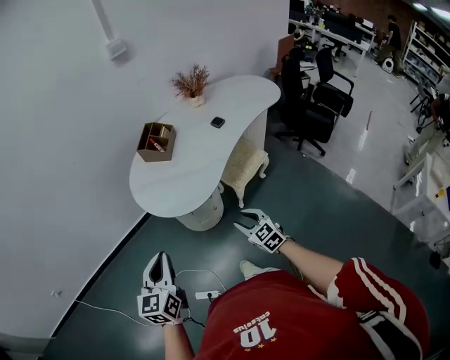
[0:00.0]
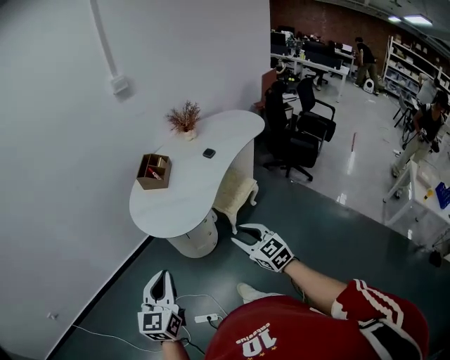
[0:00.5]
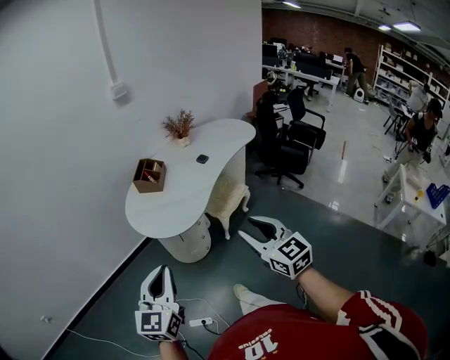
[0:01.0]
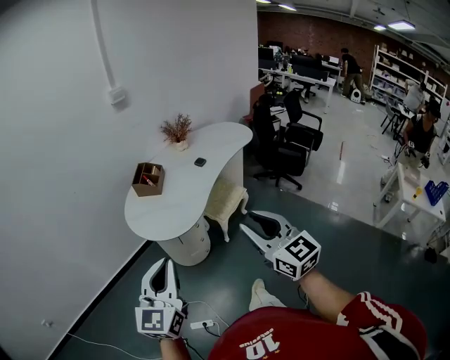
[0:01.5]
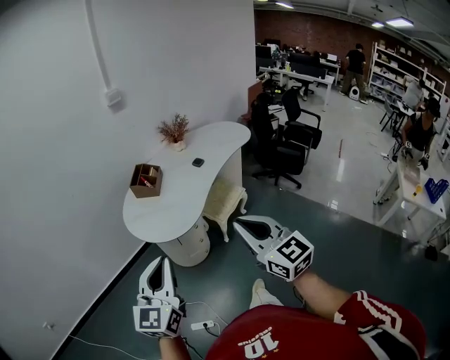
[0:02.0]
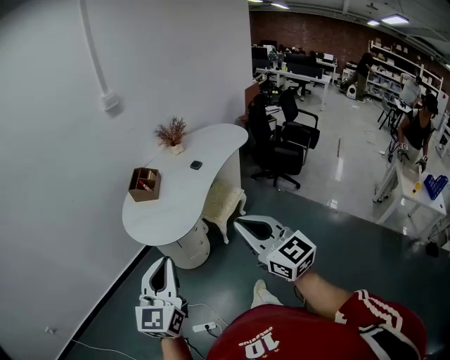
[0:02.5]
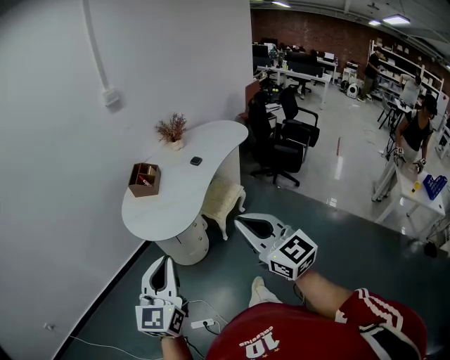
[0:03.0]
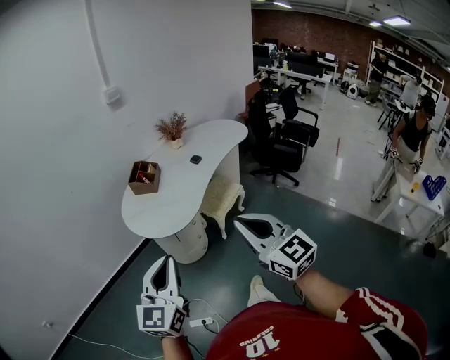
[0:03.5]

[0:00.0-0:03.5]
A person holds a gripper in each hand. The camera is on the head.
0:00.0 to 0:02.0: The left gripper moves upward and backward, roughly 15 cm, and rotates some 20 degrees. The right gripper travels upward and backward by some 35 cm, and turns by some 30 degrees.
0:02.0 to 0:03.5: There are only small adjustments of the grippers.

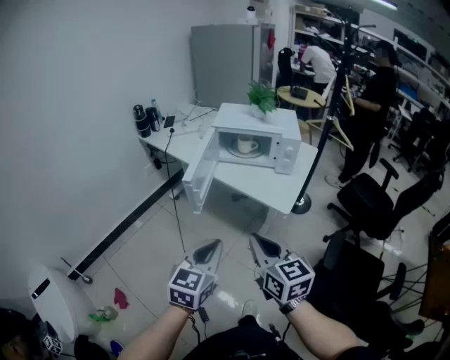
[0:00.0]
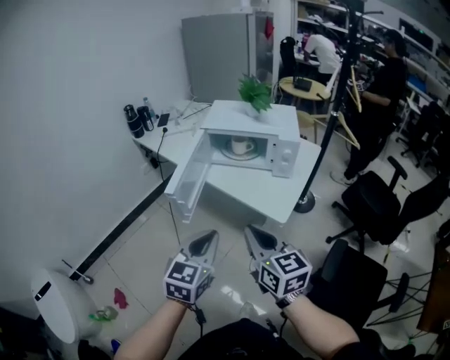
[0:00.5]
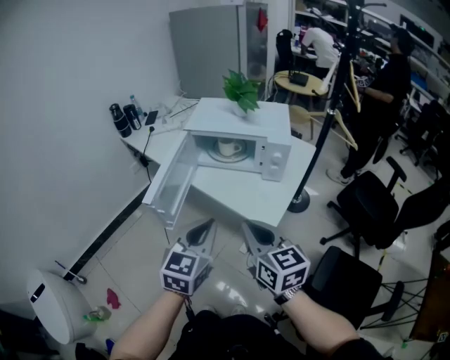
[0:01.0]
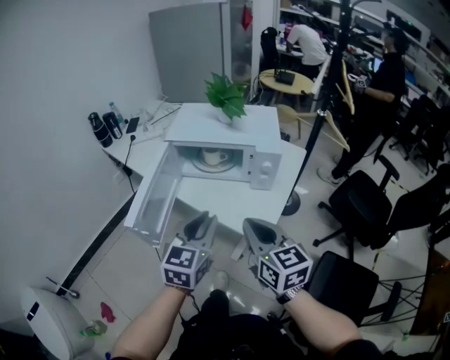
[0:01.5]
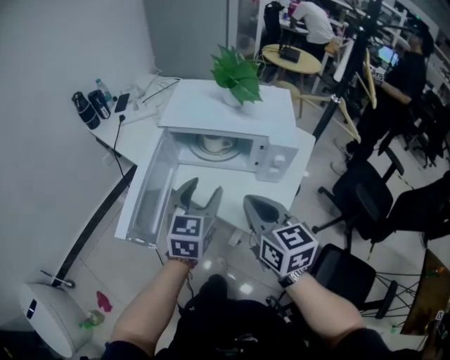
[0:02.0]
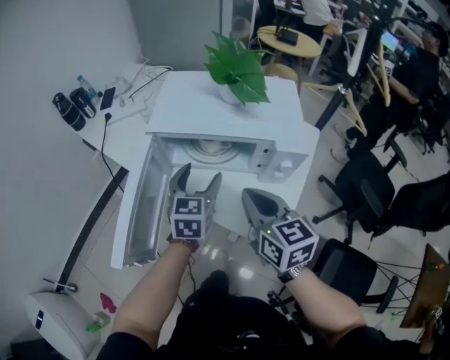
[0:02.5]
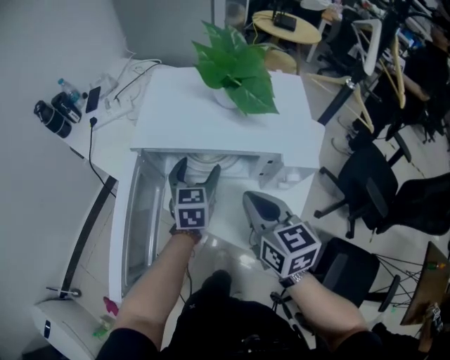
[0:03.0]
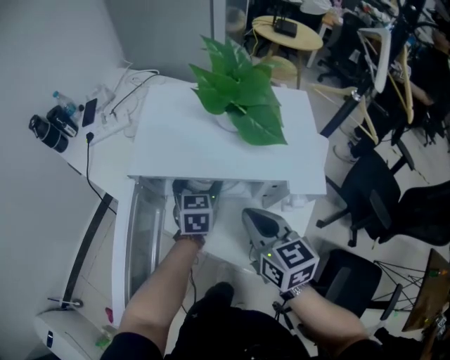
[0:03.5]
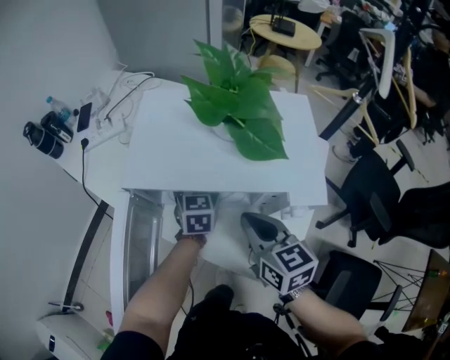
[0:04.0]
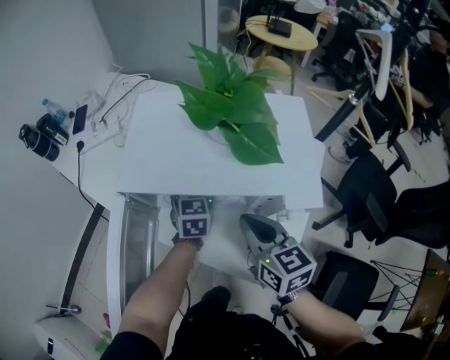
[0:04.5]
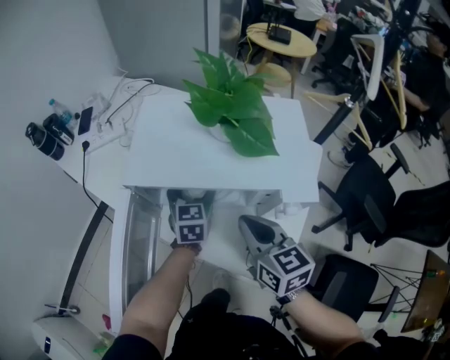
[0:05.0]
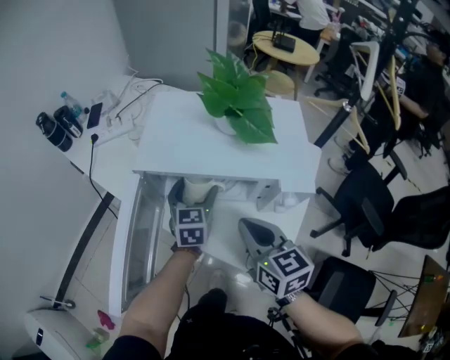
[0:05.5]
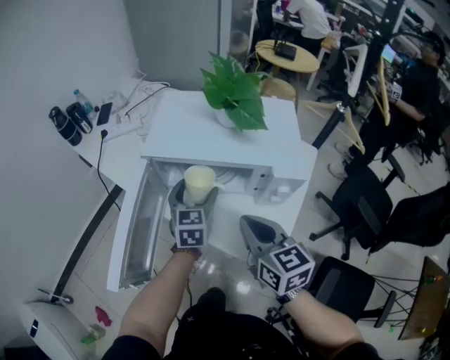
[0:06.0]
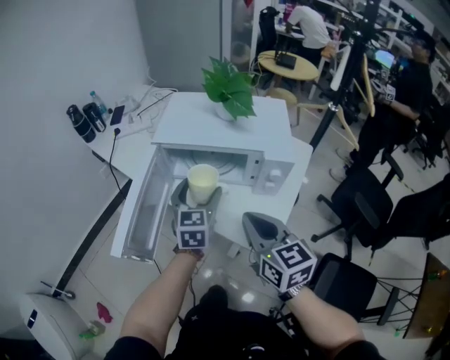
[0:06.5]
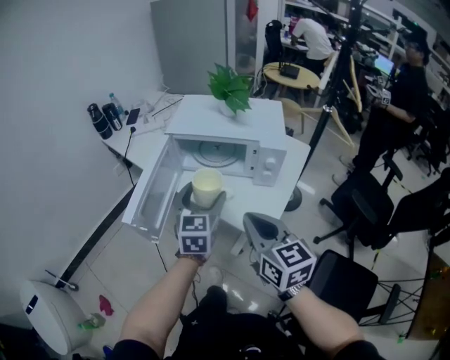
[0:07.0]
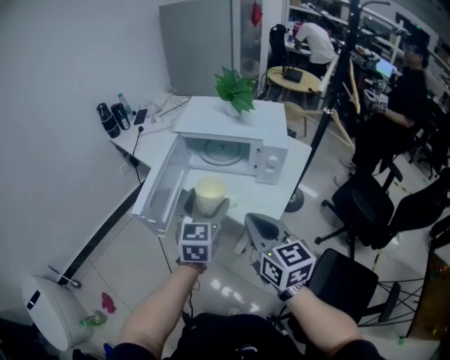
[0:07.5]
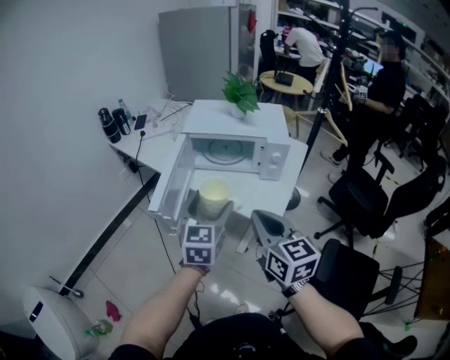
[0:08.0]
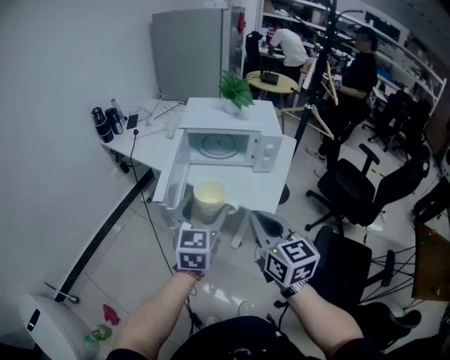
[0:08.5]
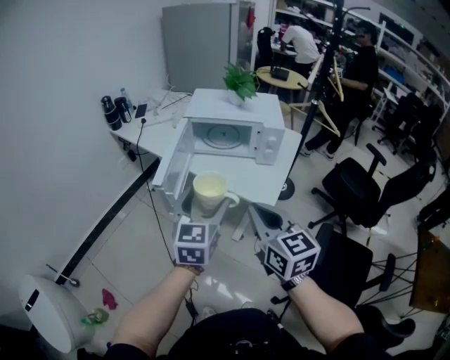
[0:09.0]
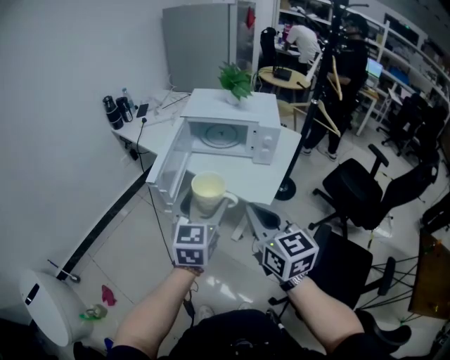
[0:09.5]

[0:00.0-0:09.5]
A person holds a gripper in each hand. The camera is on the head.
0:00.0 to 0:02.0: The two grippers go roughly 35 cm forward. The left gripper opens.
0:02.0 to 0:04.0: The left gripper is displaced forward and downward by roughly 30 cm, and opens up. The right gripper moves forward and downward, roughly 20 cm.
0:04.0 to 0:05.5: The left gripper travels backward by approximately 5 cm. Meanwhile the right gripper ends up roughly 5 cm from where it was.
0:05.5 to 0:07.5: The two grippers go roughly 30 cm backward and upward.
0:07.5 to 0:09.5: Both grippers move backward, roughly 15 cm.

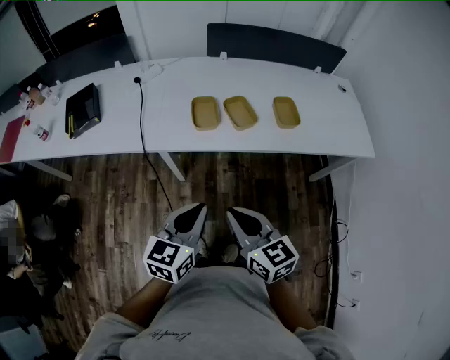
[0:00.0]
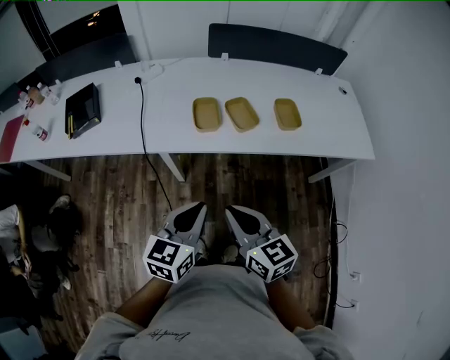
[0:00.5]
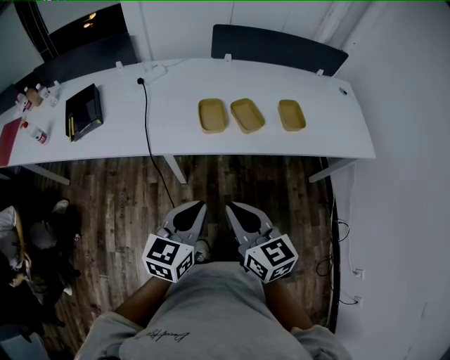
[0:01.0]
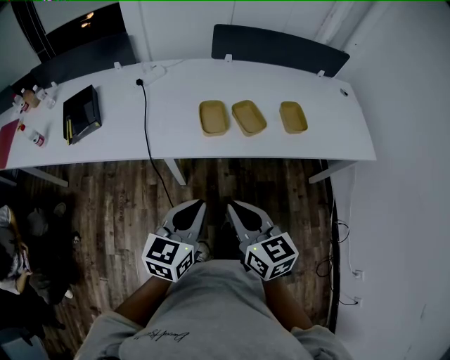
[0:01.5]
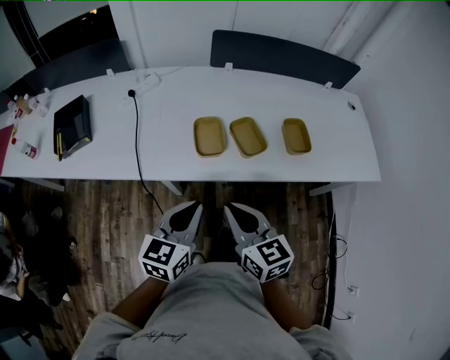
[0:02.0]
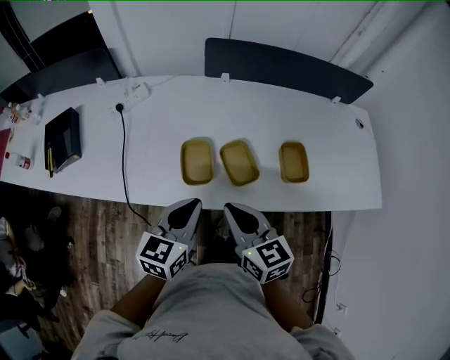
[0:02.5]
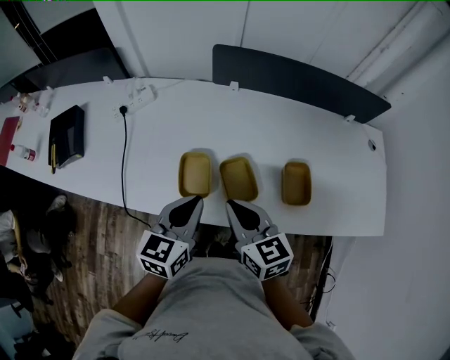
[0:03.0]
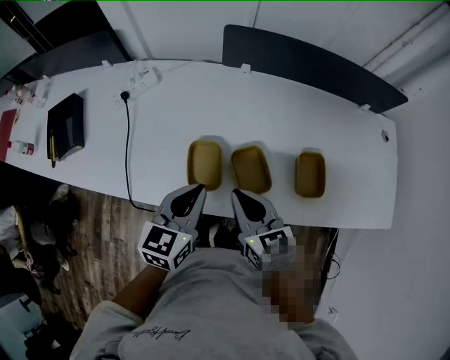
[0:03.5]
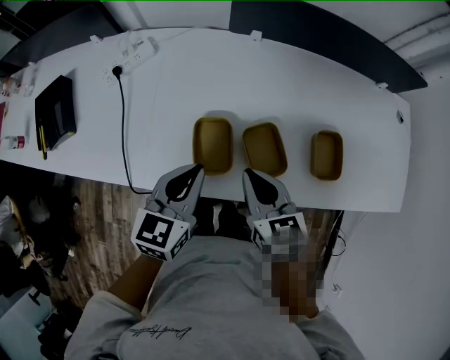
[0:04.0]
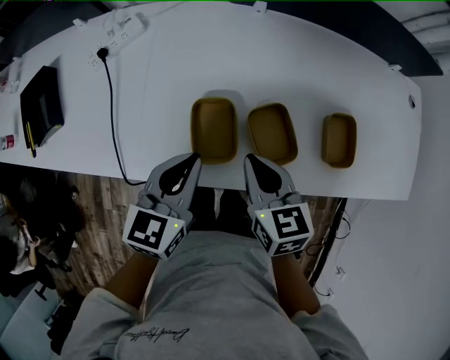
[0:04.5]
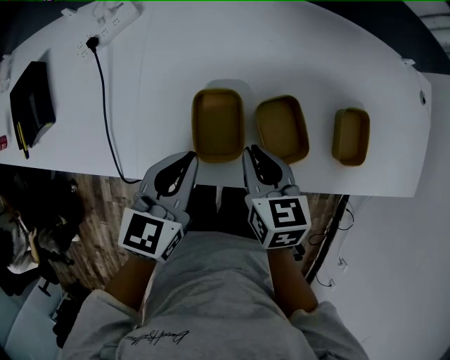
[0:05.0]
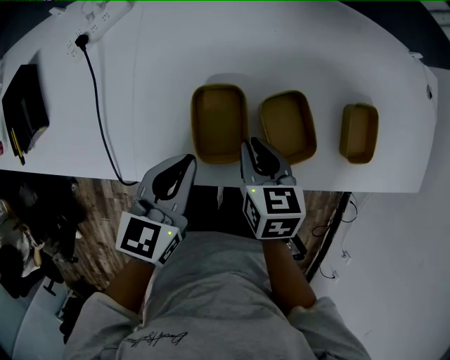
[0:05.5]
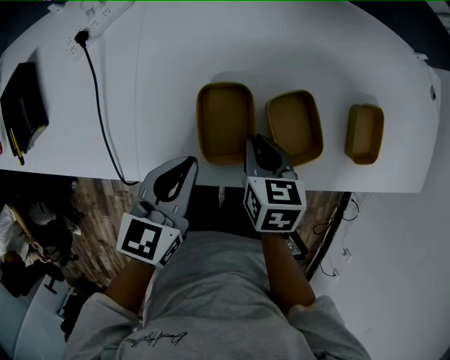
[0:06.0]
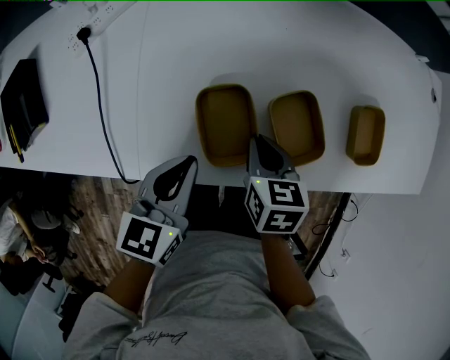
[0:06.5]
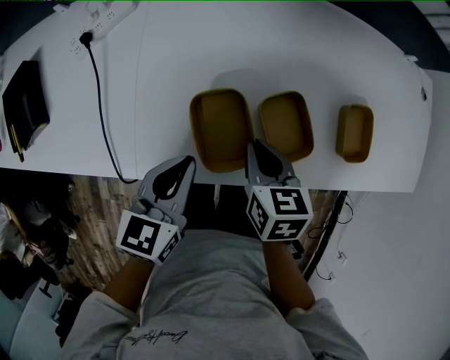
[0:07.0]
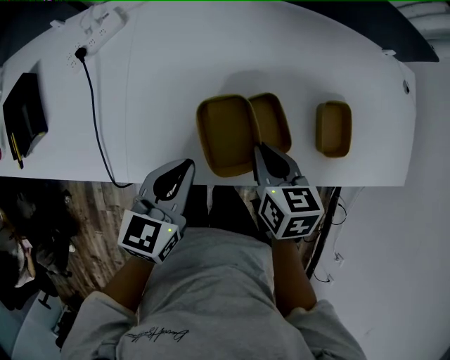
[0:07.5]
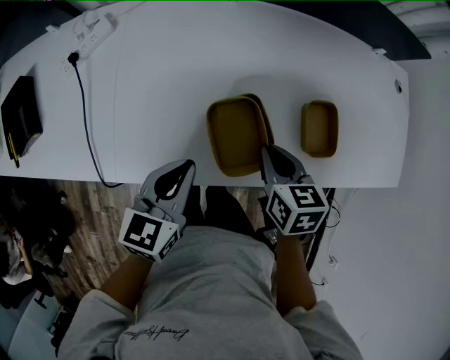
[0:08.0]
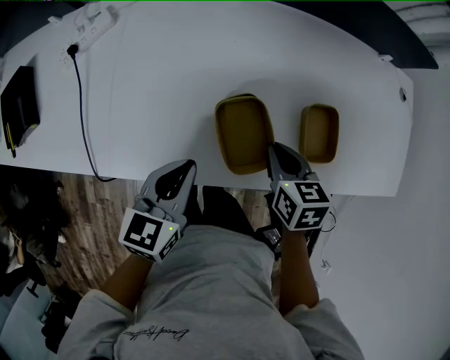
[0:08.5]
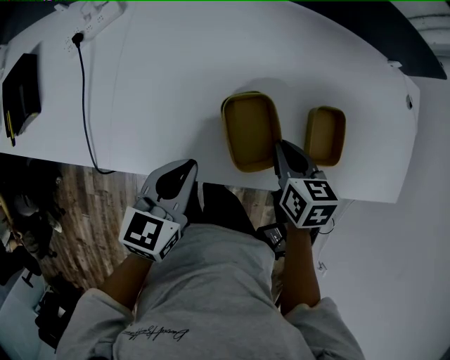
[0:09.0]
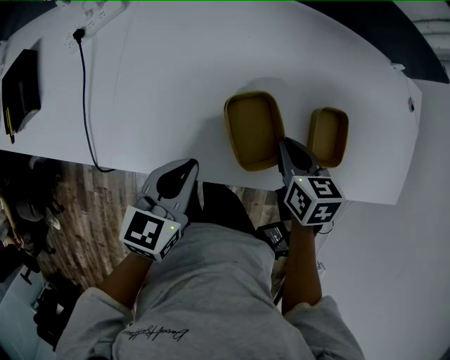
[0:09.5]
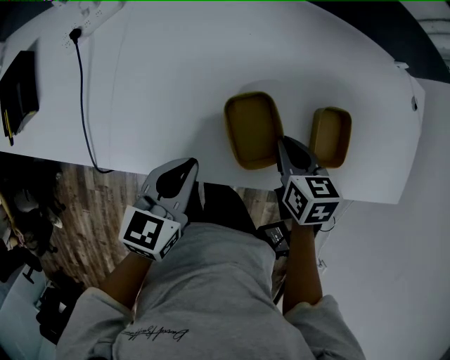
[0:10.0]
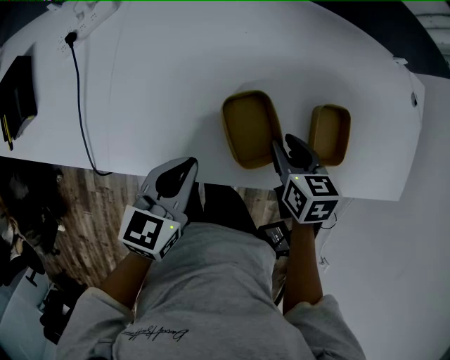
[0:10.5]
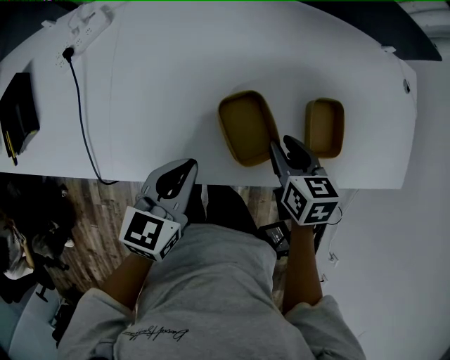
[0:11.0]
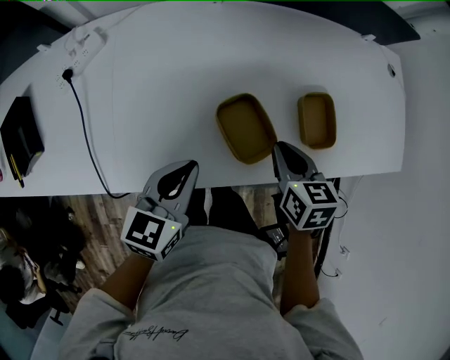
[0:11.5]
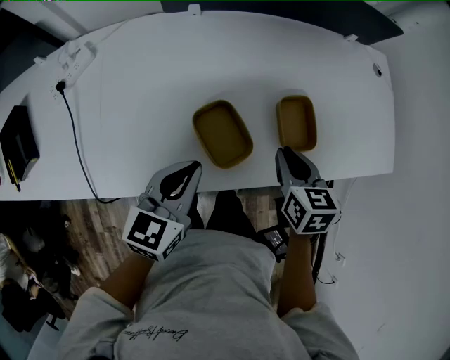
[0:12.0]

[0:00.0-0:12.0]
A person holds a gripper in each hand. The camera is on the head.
0:00.0 to 0:02.0: The grippers both shift forward by roughly 15 cm.
0:02.0 to 0:04.0: Both grippers travel together forward, roughly 25 cm.
0:04.0 to 0:06.0: The left gripper shifts roughly 10 cm downward. The right gripper goes approximately 15 cm downward, and swivels approximately 20 degrees.
0:06.0 to 0:08.0: The left gripper shifts roughly 10 cm to the right. Meanwhile the right gripper is displaced to the right and upward by some 15 cm.
0:08.0 to 0:10.0: The right gripper changes place by about 5 cm.
0:10.0 to 0:12.0: The two grippers go about 10 cm to the right and upward. The right gripper opens and closes again.

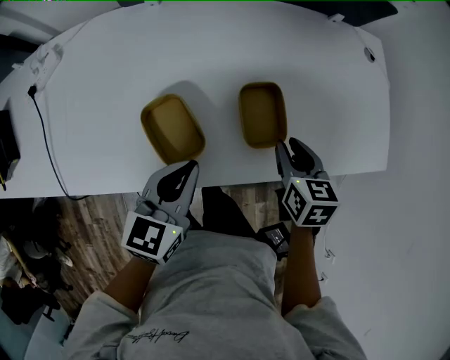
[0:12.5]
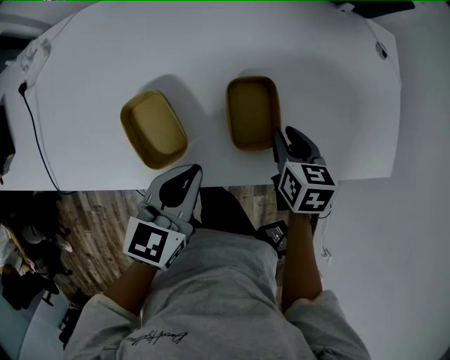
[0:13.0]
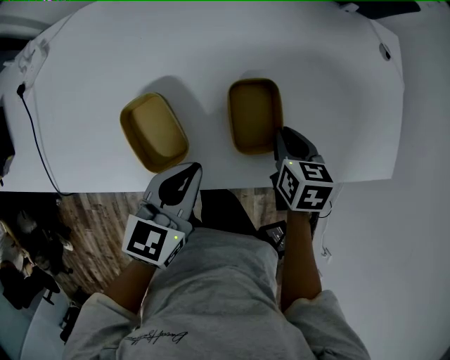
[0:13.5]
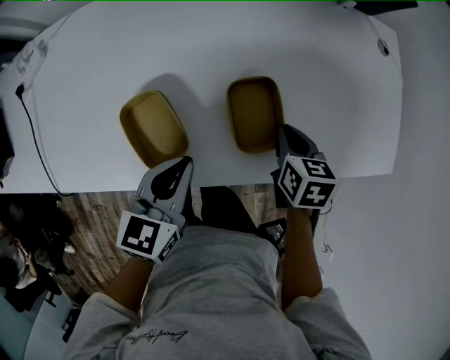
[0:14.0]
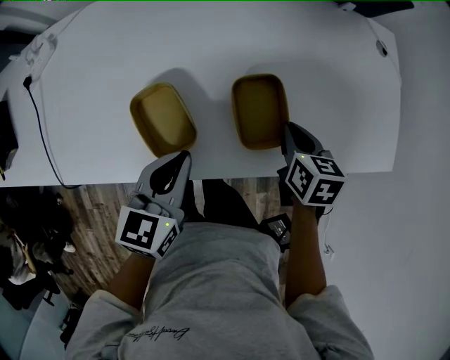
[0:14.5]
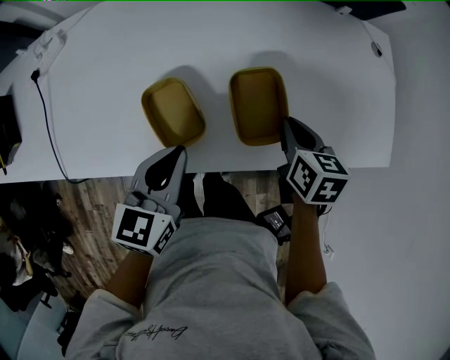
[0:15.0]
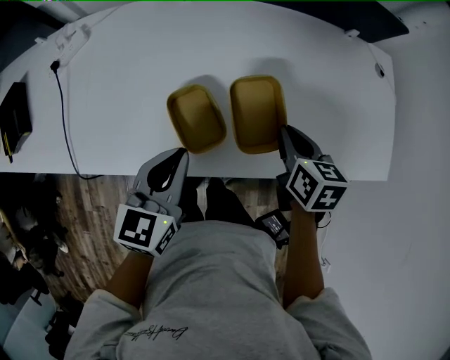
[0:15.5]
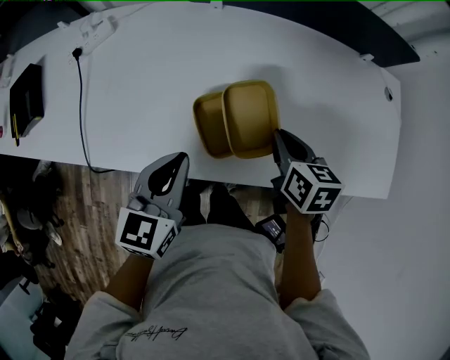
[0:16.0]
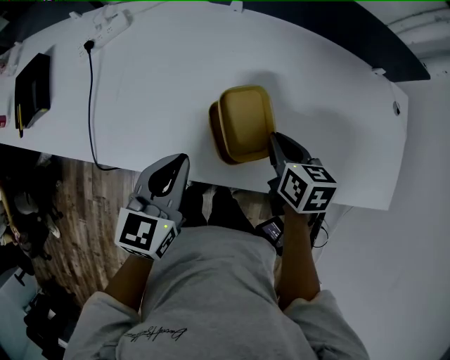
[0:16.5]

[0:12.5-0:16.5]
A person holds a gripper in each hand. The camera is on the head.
0:12.5 to 0:14.5: The right gripper closes up.
0:14.5 to 0:16.5: The grippers both shift to the left by approximately 20 cm.
